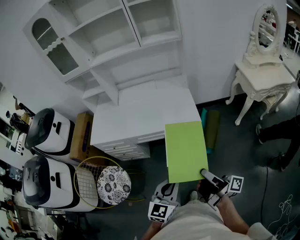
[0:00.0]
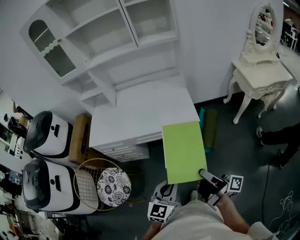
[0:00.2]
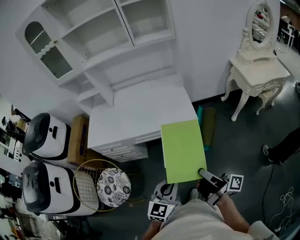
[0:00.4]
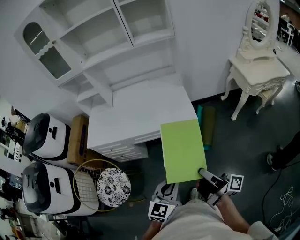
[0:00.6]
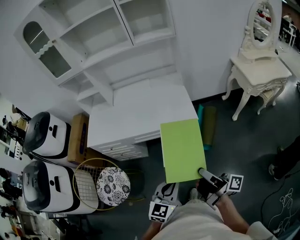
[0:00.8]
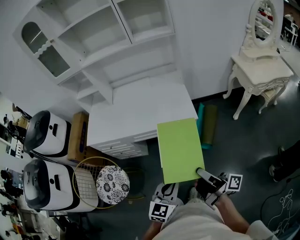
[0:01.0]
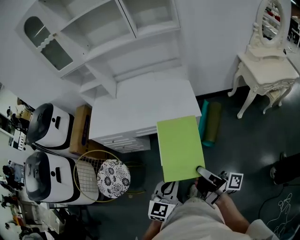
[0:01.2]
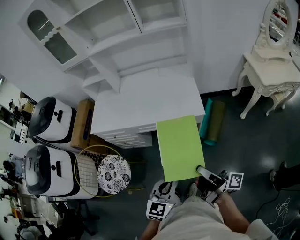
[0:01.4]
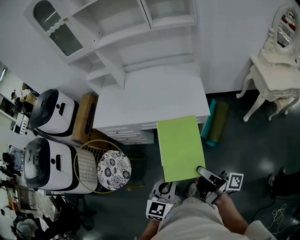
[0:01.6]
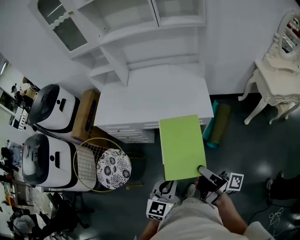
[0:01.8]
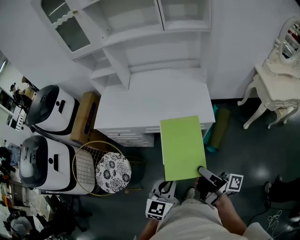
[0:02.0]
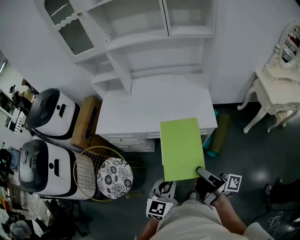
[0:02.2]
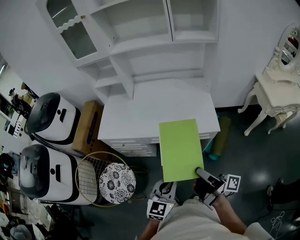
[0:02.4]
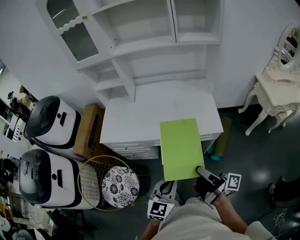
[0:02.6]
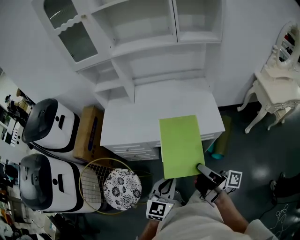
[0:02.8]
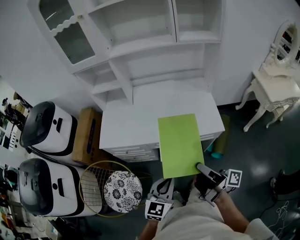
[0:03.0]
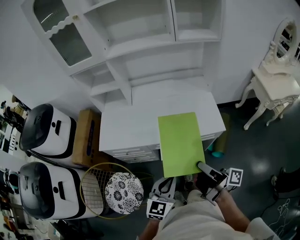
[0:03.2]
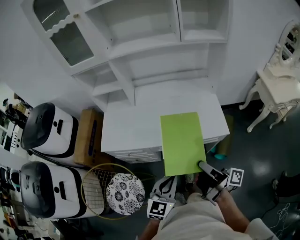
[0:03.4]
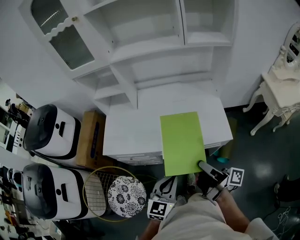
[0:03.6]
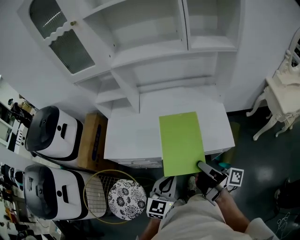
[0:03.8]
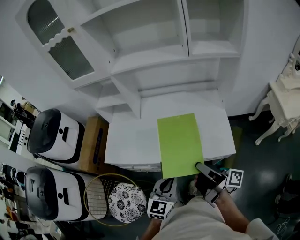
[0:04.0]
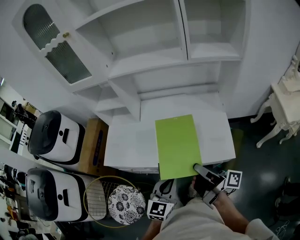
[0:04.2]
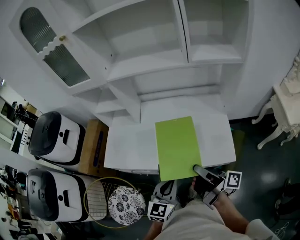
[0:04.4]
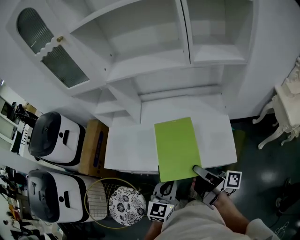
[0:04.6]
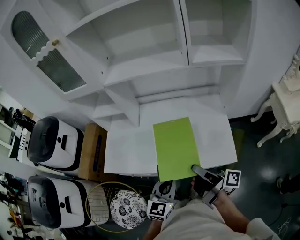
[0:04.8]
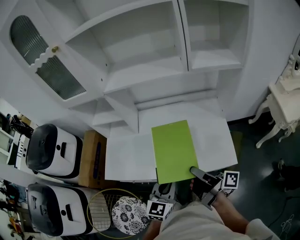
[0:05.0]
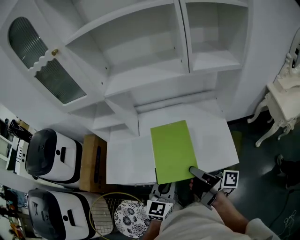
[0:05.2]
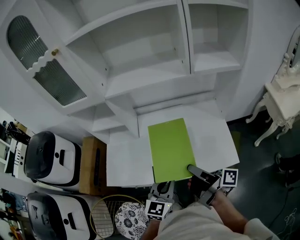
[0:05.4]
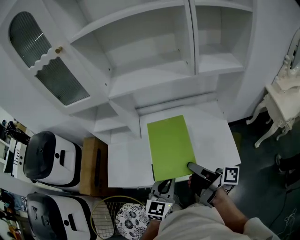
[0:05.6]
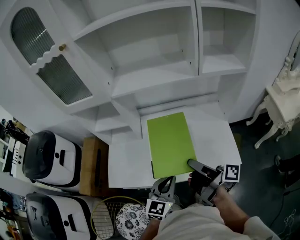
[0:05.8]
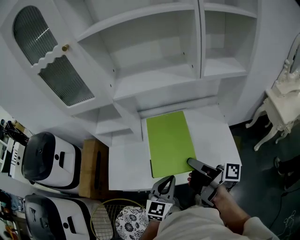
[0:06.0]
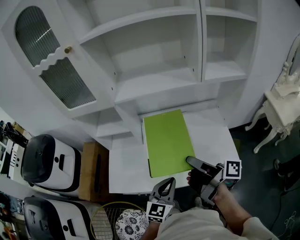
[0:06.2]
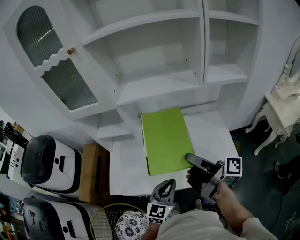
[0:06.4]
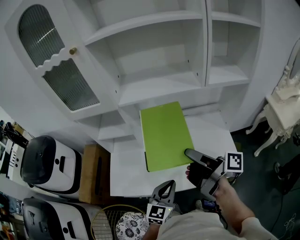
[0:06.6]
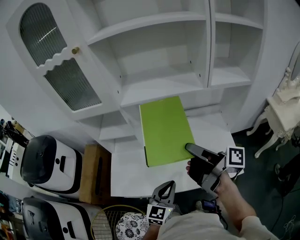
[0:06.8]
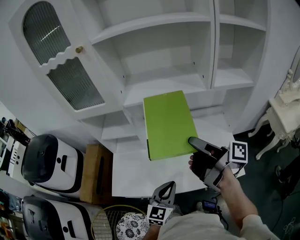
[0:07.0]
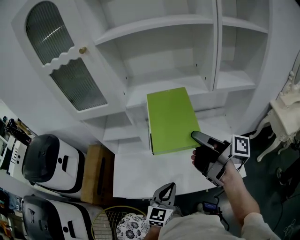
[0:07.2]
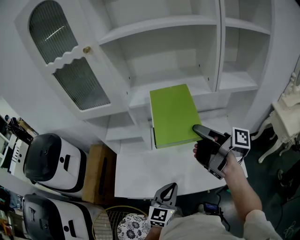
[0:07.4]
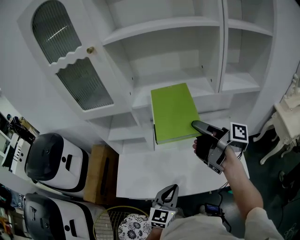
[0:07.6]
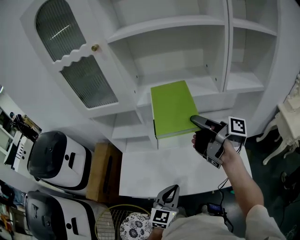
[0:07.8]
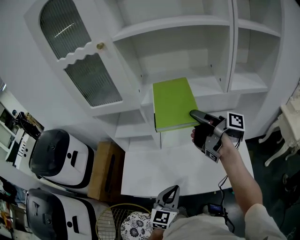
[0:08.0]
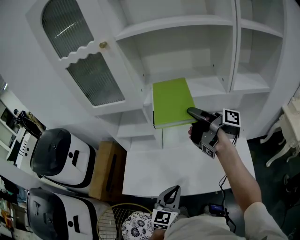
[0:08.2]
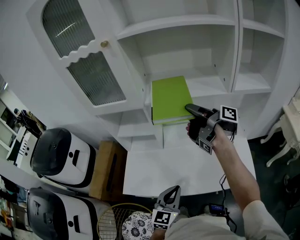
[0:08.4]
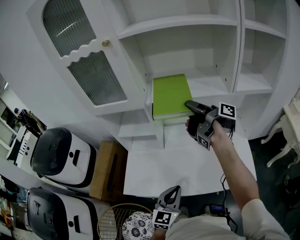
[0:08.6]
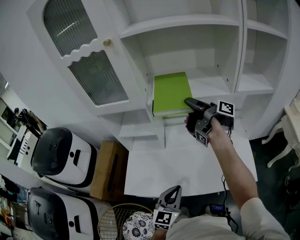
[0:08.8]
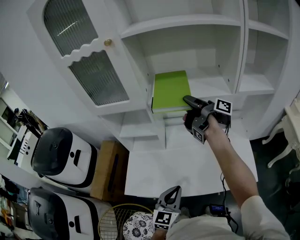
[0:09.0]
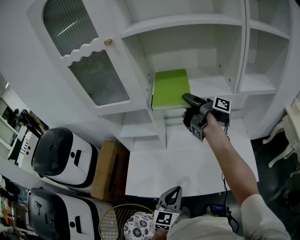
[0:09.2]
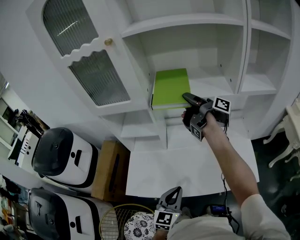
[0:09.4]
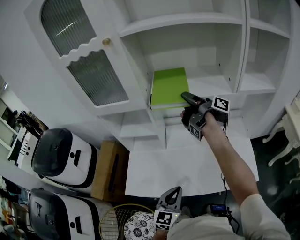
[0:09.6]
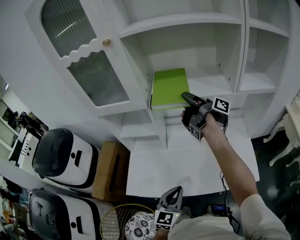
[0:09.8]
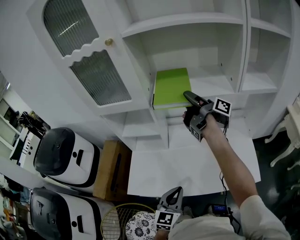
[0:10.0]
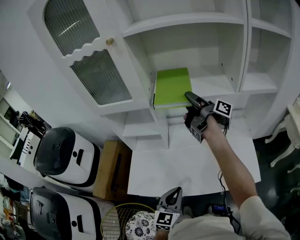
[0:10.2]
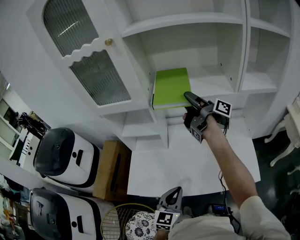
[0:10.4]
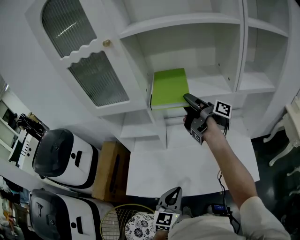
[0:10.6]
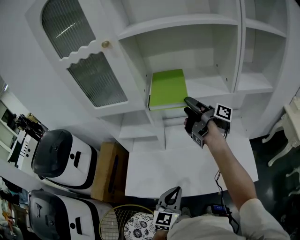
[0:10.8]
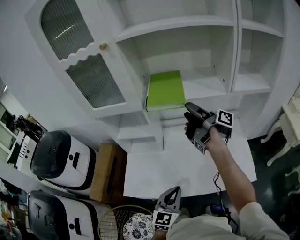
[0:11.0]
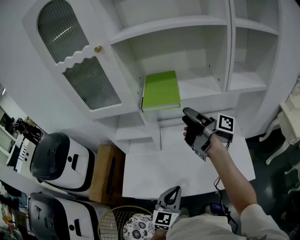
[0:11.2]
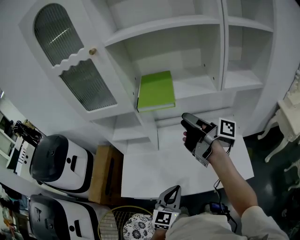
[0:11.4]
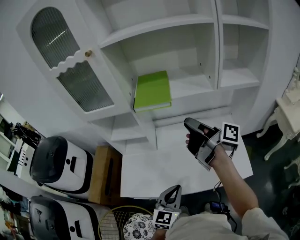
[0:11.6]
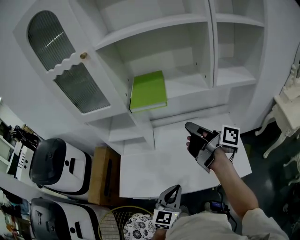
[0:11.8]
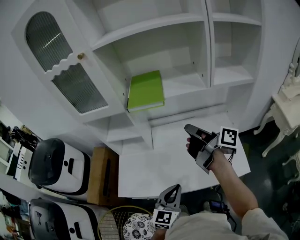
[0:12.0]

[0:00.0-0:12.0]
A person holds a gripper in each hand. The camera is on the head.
0:01.6 to 0:03.0: The left gripper shifts by approximately 20 cm.
0:03.0 to 0:04.4: The left gripper ends up roughly 20 cm from where it was.
0:04.4 to 0:06.0: The left gripper moves some 15 cm.
0:10.4 to 0:12.0: The left gripper shifts by about 5 cm.

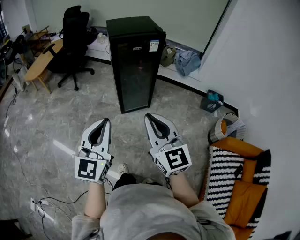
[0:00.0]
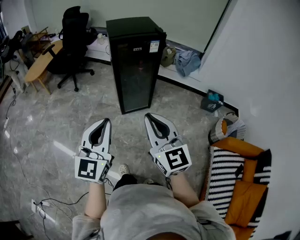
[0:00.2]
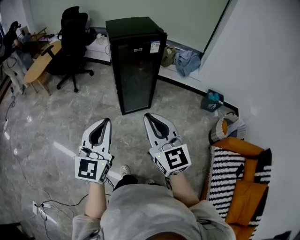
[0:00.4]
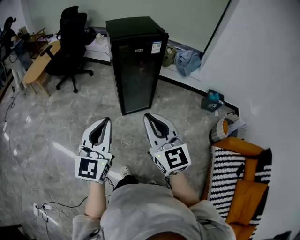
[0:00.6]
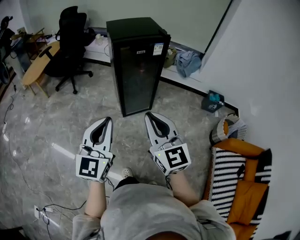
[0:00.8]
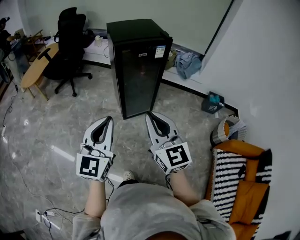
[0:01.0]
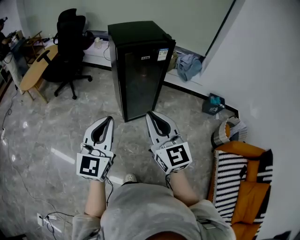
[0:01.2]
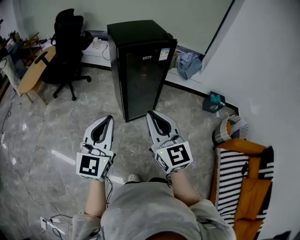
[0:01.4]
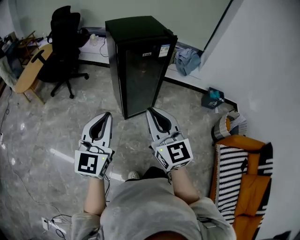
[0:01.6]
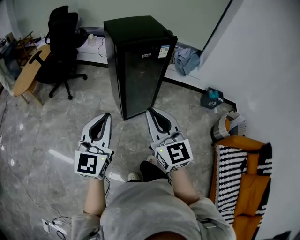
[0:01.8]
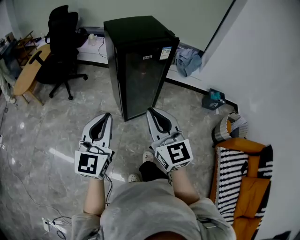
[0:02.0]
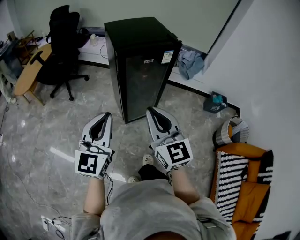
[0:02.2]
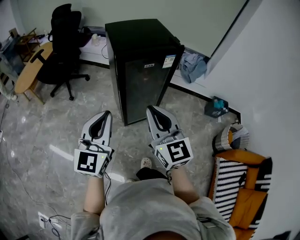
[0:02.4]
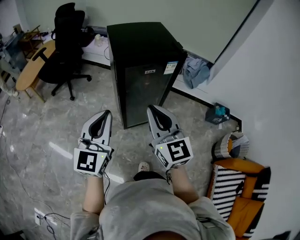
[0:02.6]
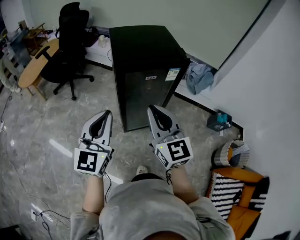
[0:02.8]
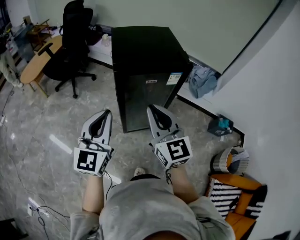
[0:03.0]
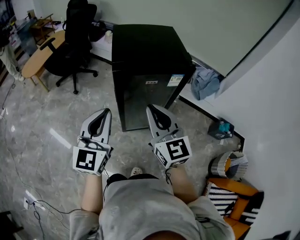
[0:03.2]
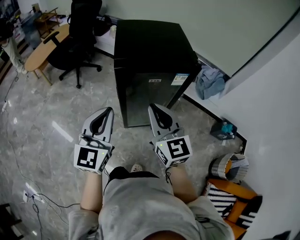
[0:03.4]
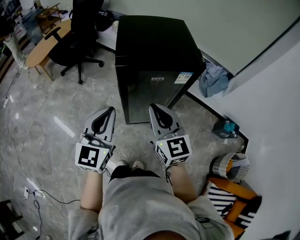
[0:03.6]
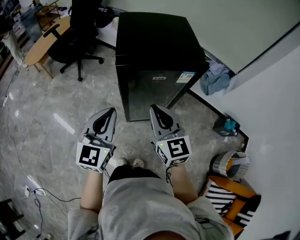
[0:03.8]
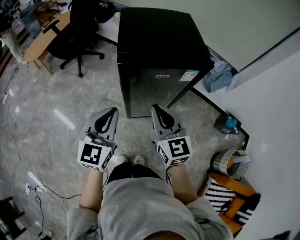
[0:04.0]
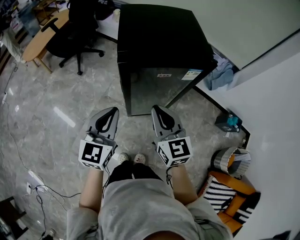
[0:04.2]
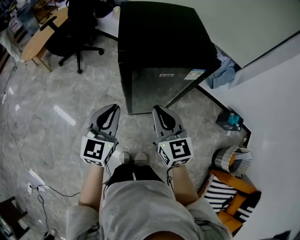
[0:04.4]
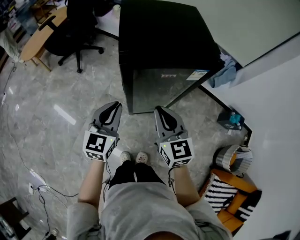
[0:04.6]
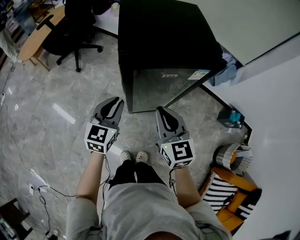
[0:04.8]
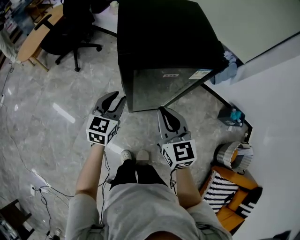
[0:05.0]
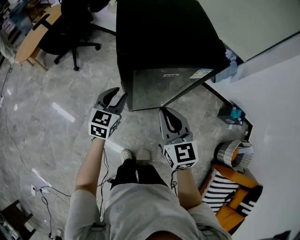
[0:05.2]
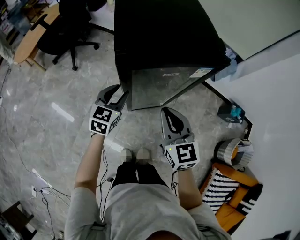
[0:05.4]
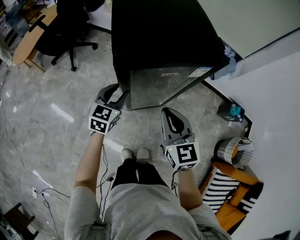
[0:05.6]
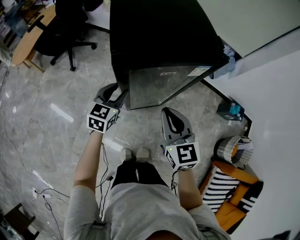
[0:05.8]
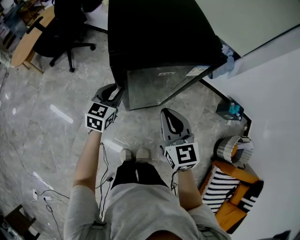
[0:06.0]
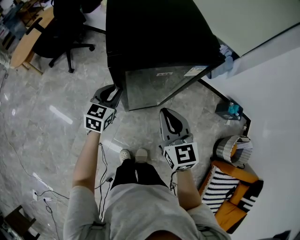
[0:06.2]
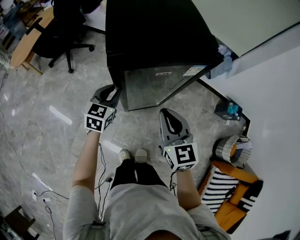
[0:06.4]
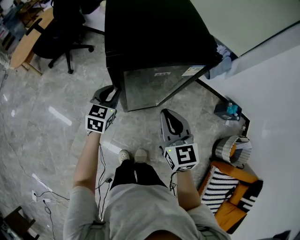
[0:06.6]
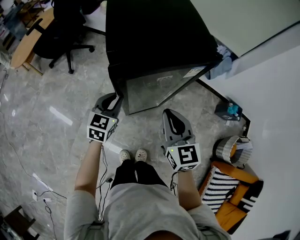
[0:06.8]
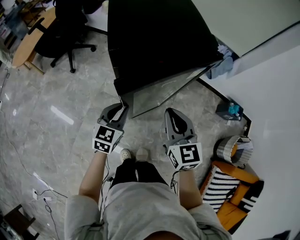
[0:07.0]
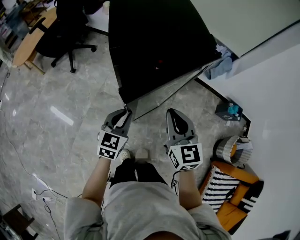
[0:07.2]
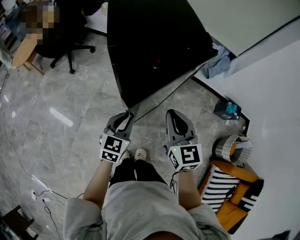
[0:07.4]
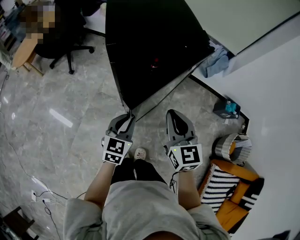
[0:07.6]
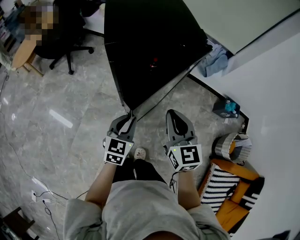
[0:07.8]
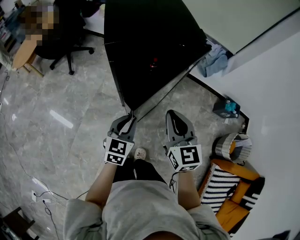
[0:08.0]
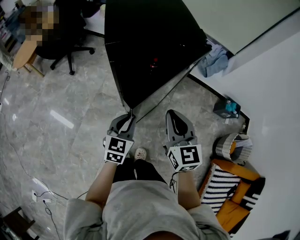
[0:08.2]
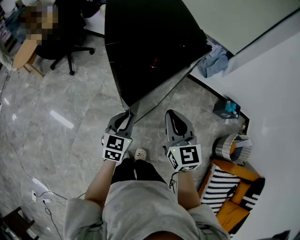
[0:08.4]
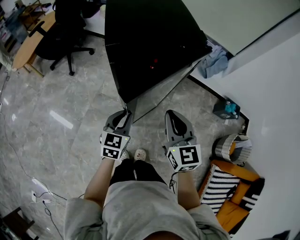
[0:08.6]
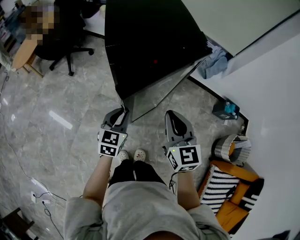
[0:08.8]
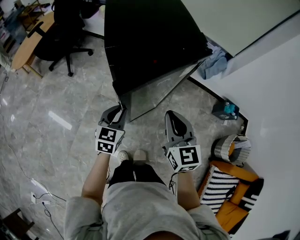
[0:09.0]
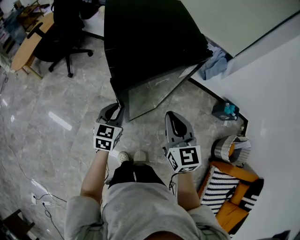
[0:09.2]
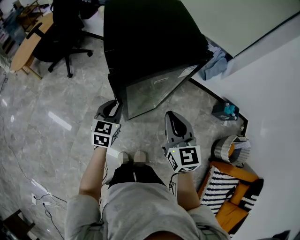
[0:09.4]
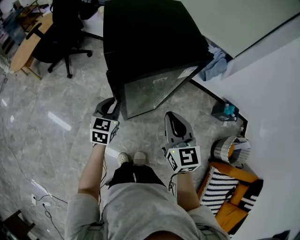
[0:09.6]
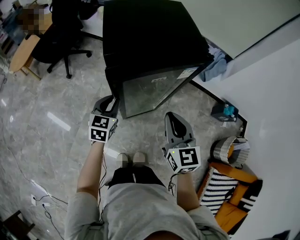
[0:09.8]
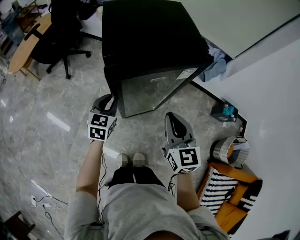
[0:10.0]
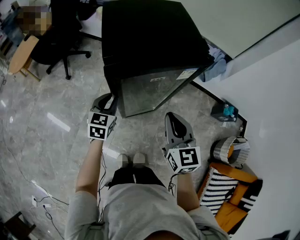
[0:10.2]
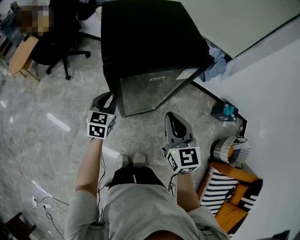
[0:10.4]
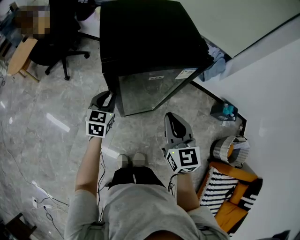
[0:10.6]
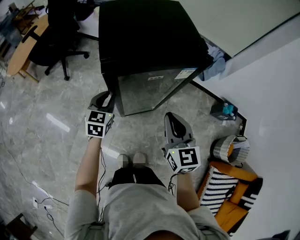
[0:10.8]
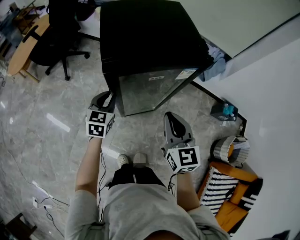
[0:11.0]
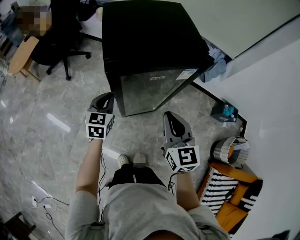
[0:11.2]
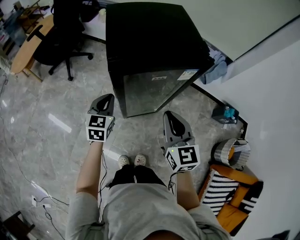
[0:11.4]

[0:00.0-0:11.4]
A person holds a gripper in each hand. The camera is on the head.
0:00.0 to 0:01.4: The grippers both shift forward and to the left by some 15 cm.
0:01.4 to 0:02.8: Both grippers move forward, approximately 20 cm.
0:02.8 to 0:04.2: The grippers both shift downward and forward by some 15 cm.
0:04.2 to 0:05.6: The right gripper travels downward by about 5 cm; the left gripper moves downward and forward, some 20 cm, changes its angle by approximately 20 degrees, and opens its fingers.
0:05.6 to 0:07.2: The left gripper moves backward and to the right, approximately 10 cm, and closes its fingers.
0:08.6 to 0:10.0: The left gripper heads forward and to the left, covering about 15 cm.
0:10.0 to 0:11.4: The grippers make only small movements.

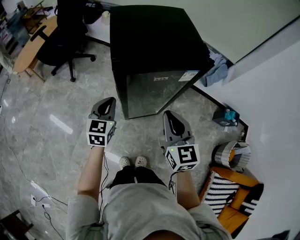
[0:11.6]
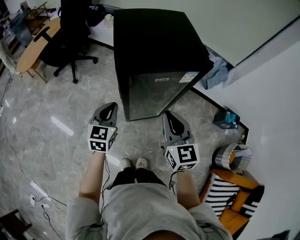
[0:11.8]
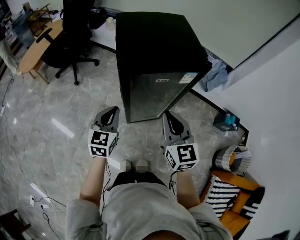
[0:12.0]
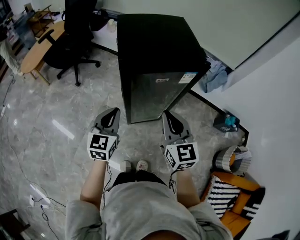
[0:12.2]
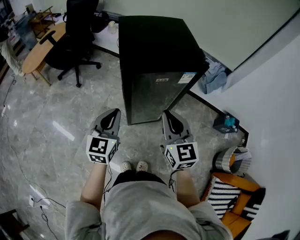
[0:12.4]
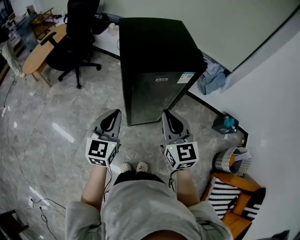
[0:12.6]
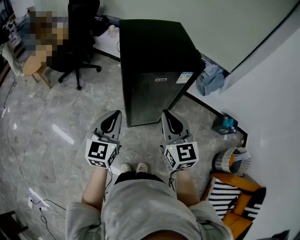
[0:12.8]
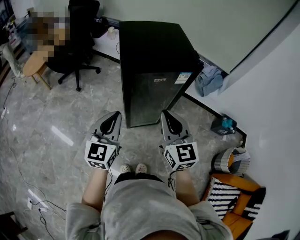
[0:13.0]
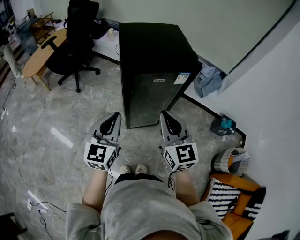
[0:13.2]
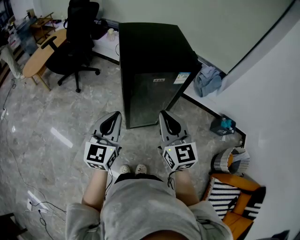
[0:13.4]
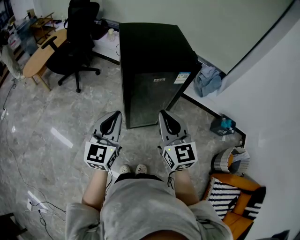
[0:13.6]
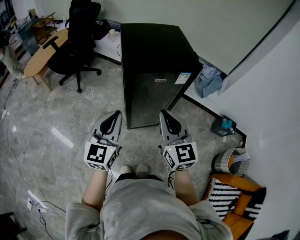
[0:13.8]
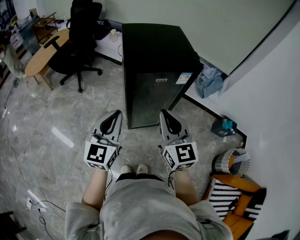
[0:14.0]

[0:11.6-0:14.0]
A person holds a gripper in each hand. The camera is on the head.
0:11.6 to 0:12.8: The left gripper is displaced backward and upward by roughly 15 cm, while the right gripper heads upward and backward, covering some 10 cm.
0:12.8 to 0:14.0: There are only small adjustments of the grippers.
